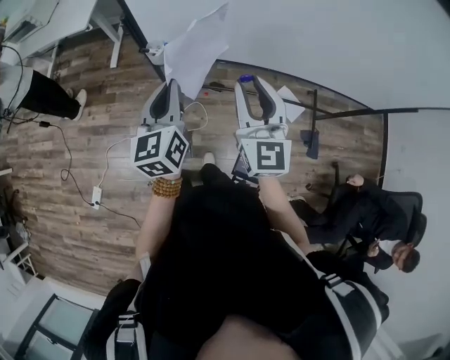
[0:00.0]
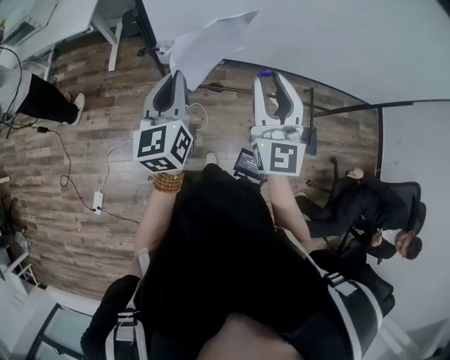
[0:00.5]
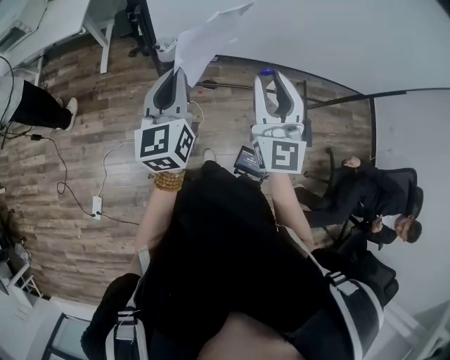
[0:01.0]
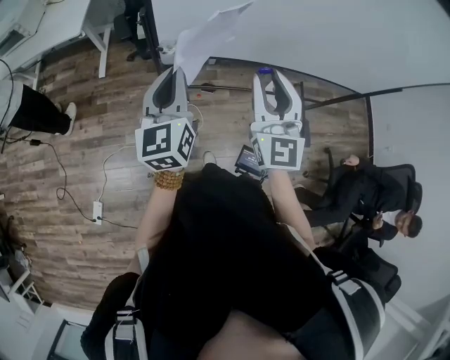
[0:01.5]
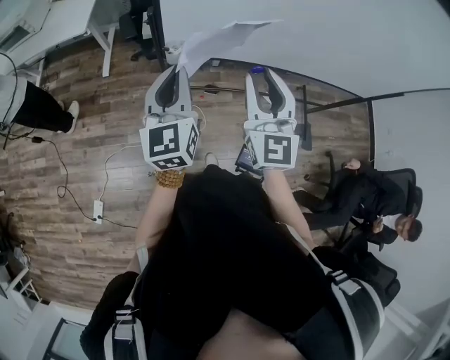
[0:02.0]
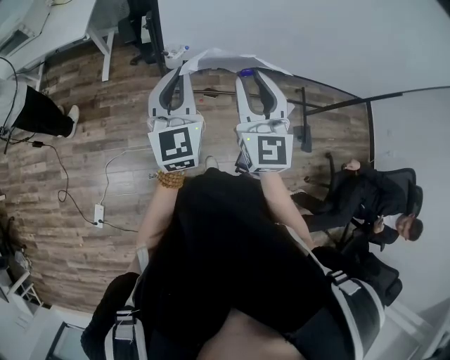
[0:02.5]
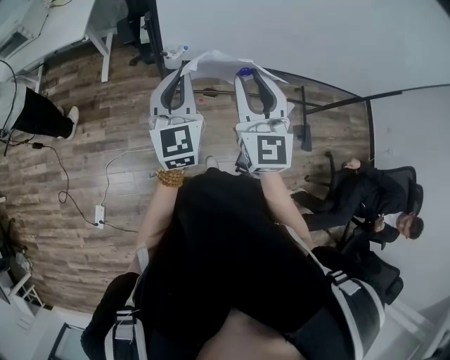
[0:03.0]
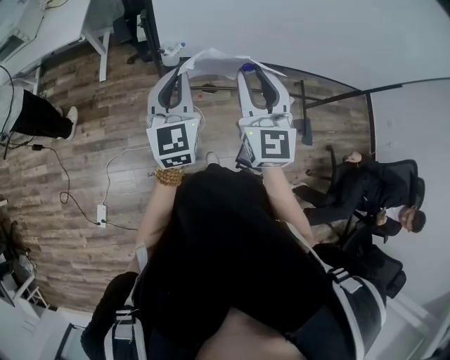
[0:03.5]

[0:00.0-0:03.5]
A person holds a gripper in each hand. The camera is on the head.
0:00.0 to 0:02.0: The left gripper is displaced to the left and upward by roughly 10 cm, while the right gripper shifts roughly 10 cm to the left.
0:02.0 to 0:03.5: There are only small adjustments of the grippers.

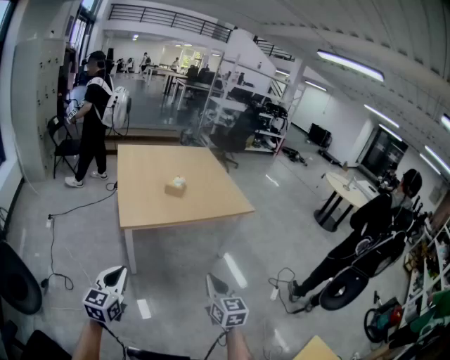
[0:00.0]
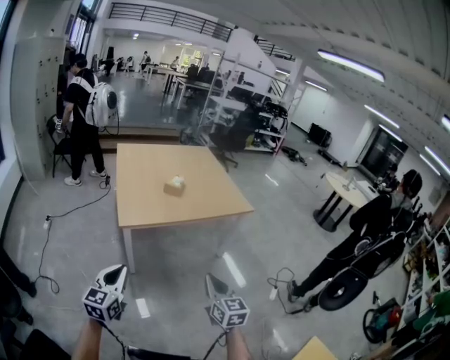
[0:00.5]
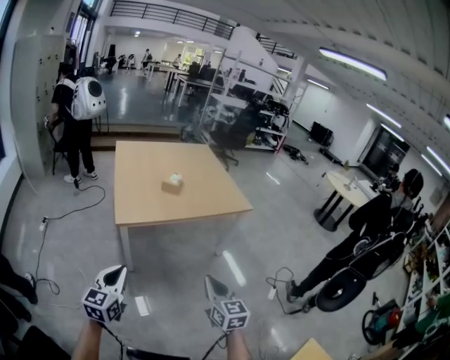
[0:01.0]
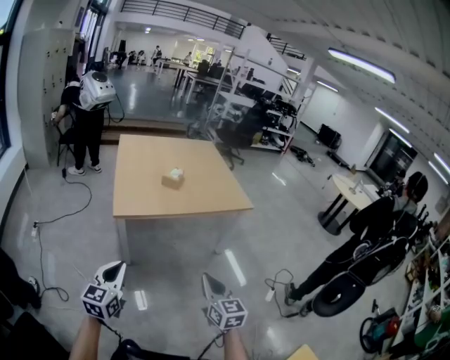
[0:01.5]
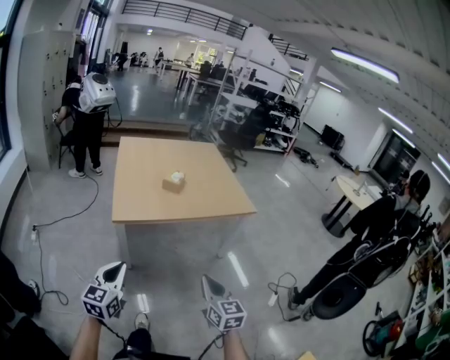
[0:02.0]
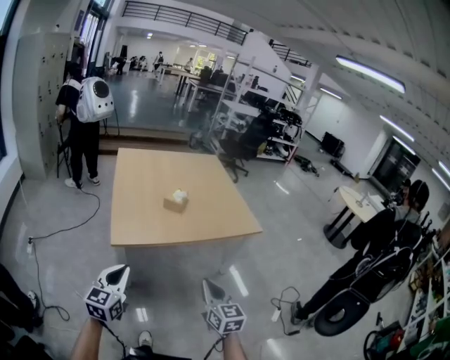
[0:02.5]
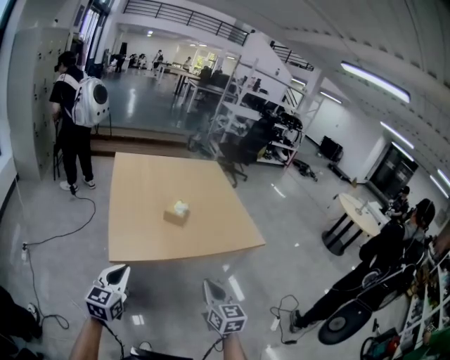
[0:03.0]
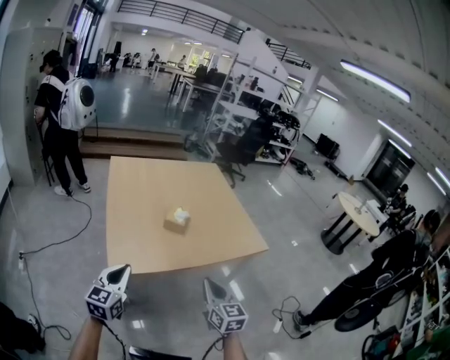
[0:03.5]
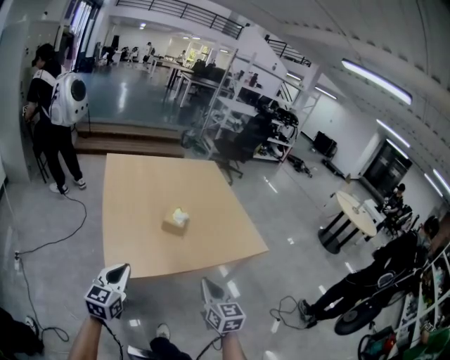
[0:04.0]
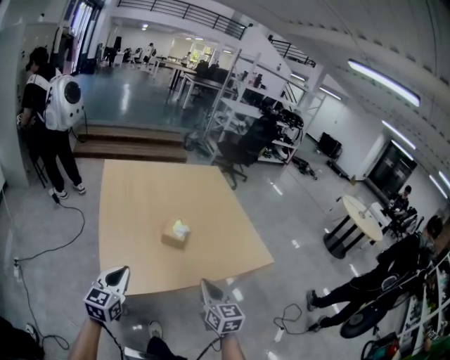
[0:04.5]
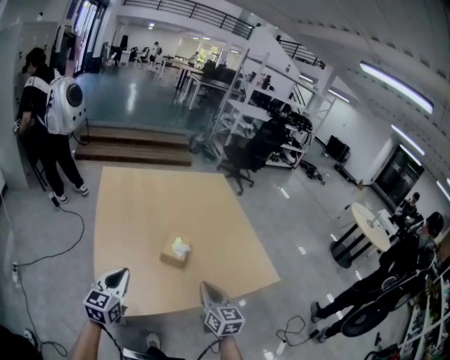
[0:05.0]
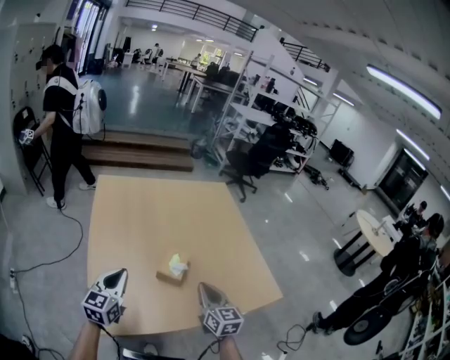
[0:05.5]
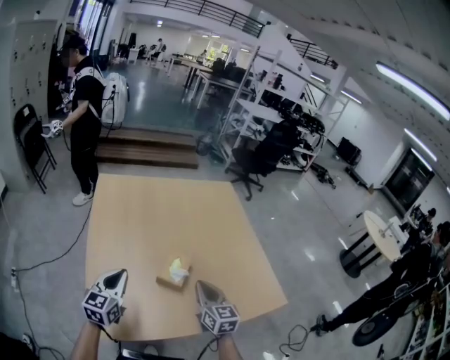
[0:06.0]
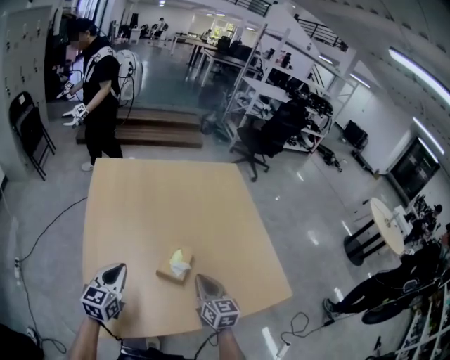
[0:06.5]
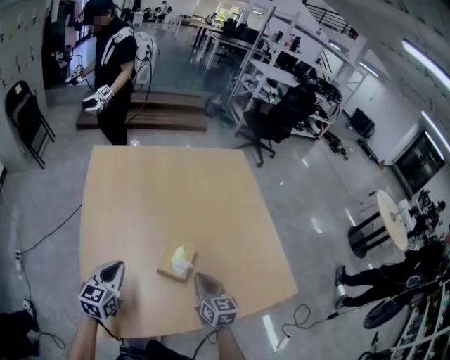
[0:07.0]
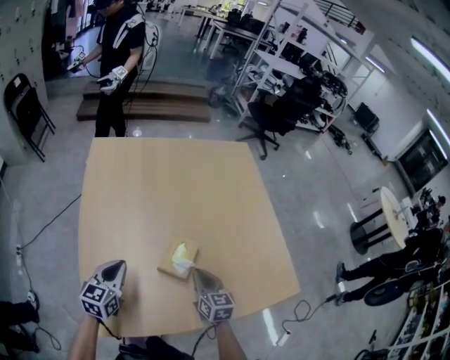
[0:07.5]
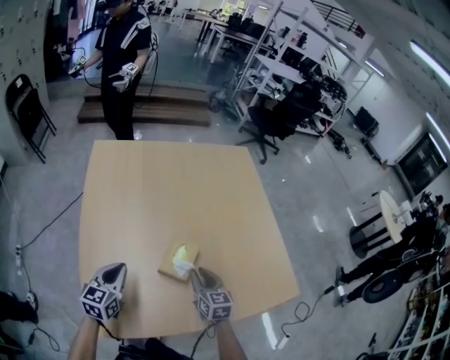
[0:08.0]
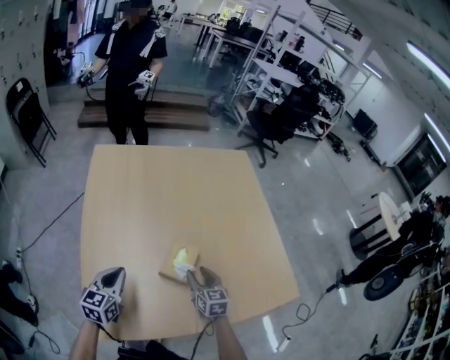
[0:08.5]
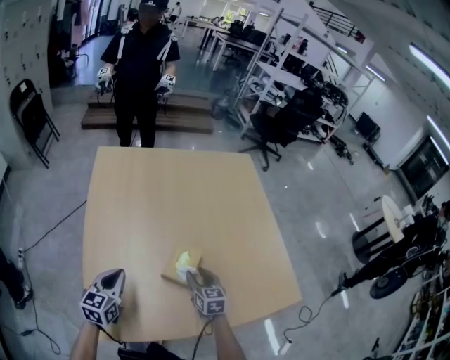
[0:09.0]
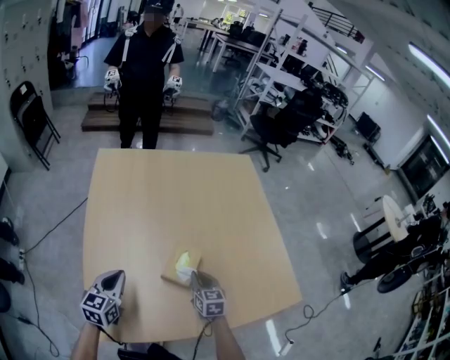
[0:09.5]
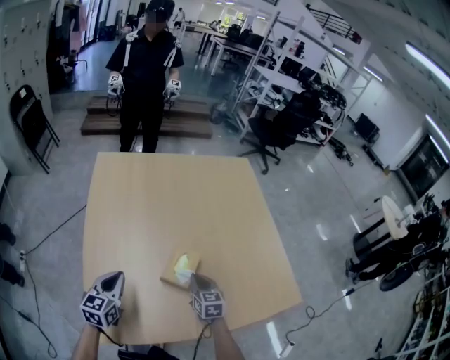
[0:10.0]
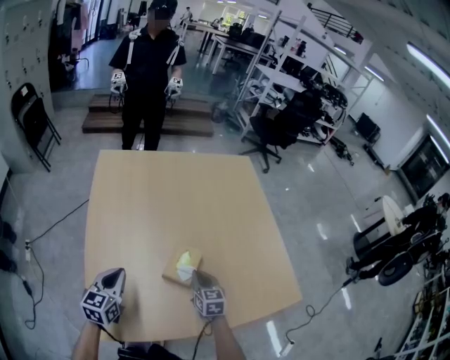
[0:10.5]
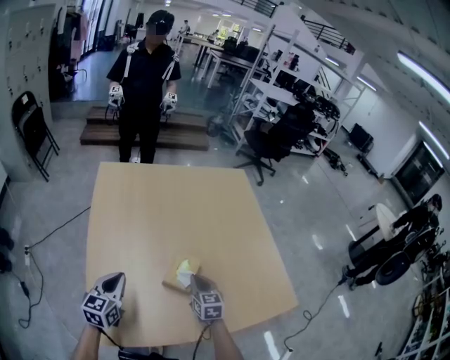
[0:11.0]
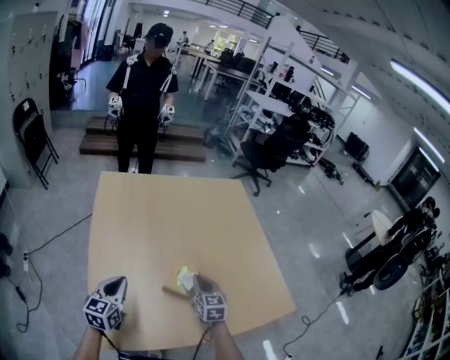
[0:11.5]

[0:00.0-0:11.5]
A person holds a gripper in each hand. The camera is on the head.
0:00.0 to 0:02.0: The left gripper moves to the right, roughly 5 cm, while the right gripper ends up some 5 cm from where it was.
0:02.0 to 0:04.0: Both grippers move forward, approximately 30 cm.
0:04.0 to 0:06.0: The grippers both shift forward by roughly 30 cm.
0:06.0 to 0:07.5: The two grippers go approximately 10 cm downward and forward.
0:07.5 to 0:09.5: The right gripper moves downward, approximately 5 cm, and opens, then closes again.
0:09.5 to 0:11.5: The right gripper shifts approximately 10 cm upward.

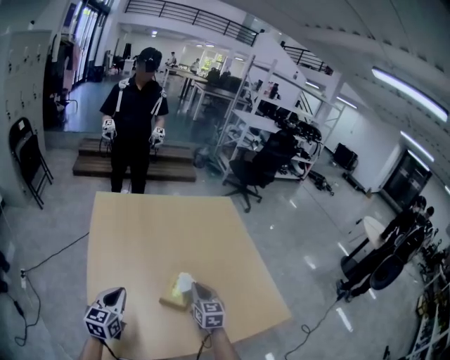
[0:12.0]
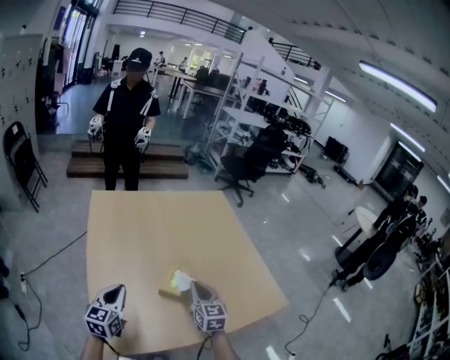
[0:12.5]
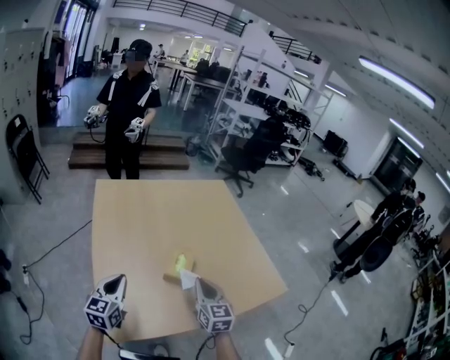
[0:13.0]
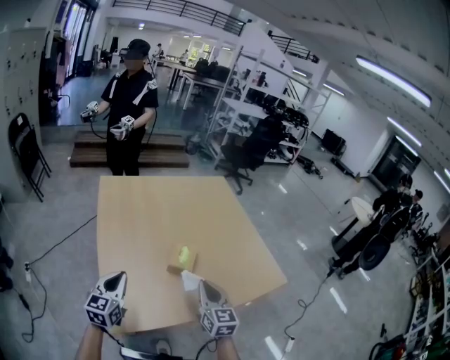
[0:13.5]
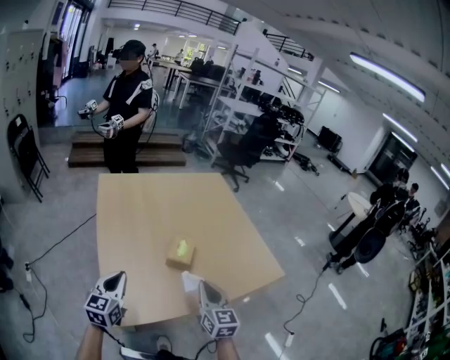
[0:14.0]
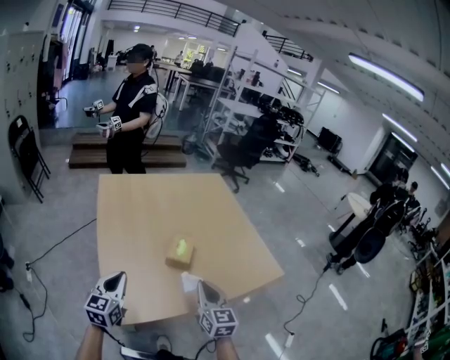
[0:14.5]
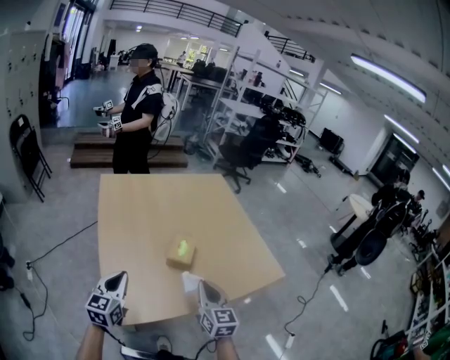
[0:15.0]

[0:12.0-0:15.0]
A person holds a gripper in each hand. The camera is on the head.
0:12.0 to 0:13.5: The left gripper goes roughly 10 cm backward. Meanwhile the right gripper heads backward and upward, covering about 20 cm.
0:13.5 to 0:15.0: The grippers move only a little.

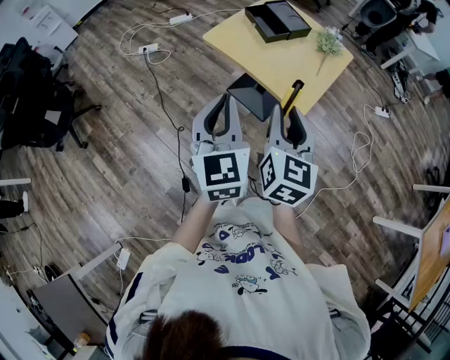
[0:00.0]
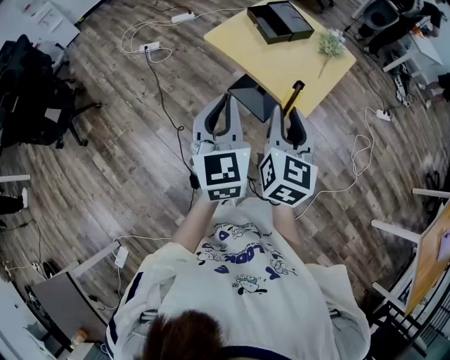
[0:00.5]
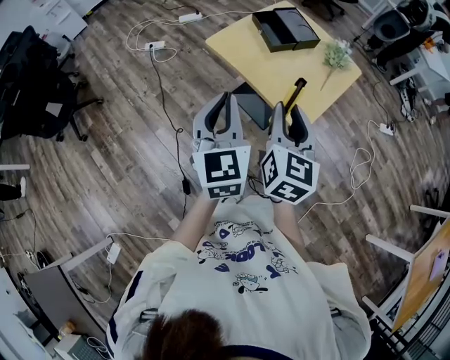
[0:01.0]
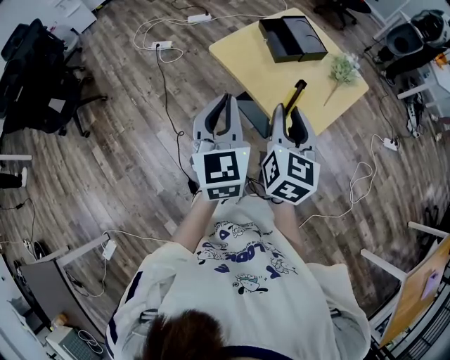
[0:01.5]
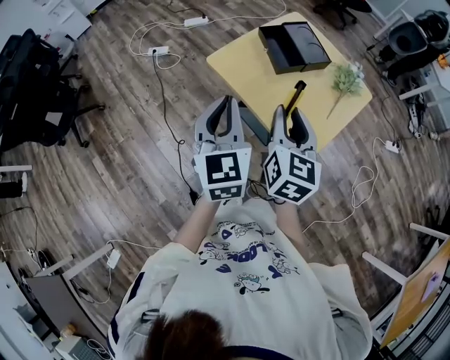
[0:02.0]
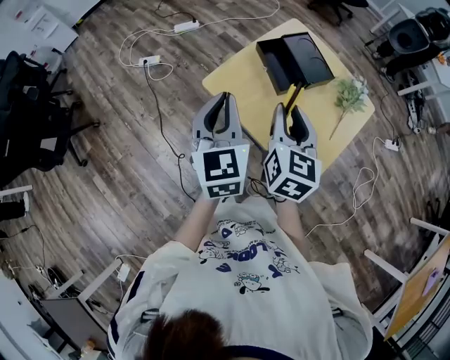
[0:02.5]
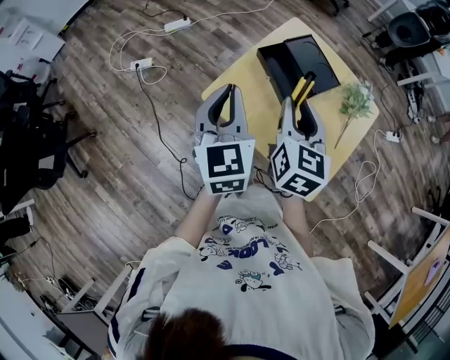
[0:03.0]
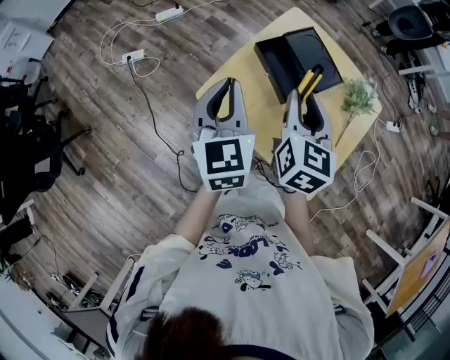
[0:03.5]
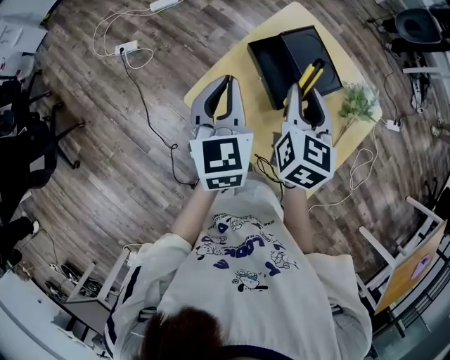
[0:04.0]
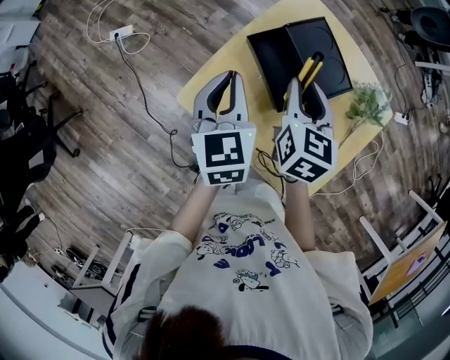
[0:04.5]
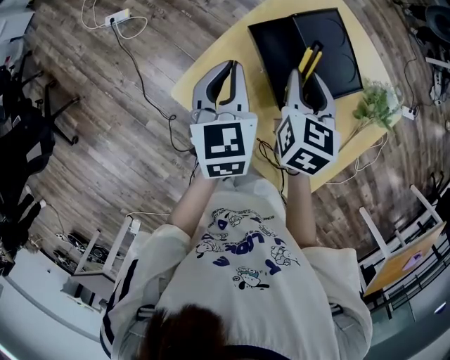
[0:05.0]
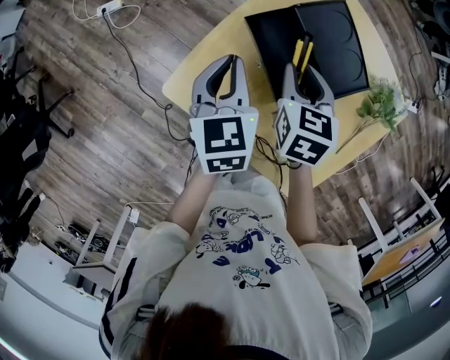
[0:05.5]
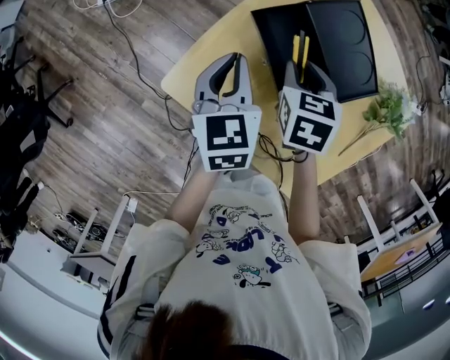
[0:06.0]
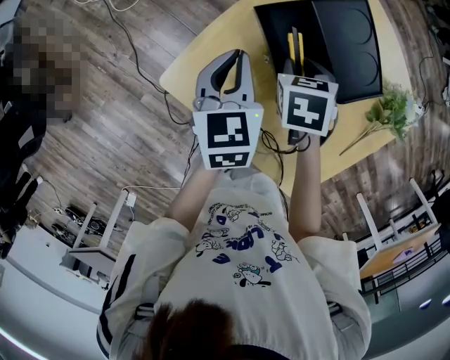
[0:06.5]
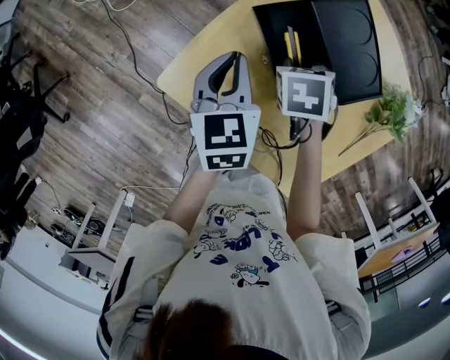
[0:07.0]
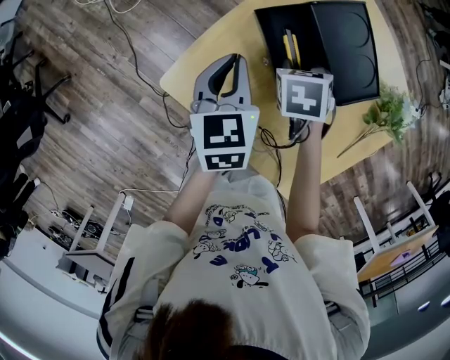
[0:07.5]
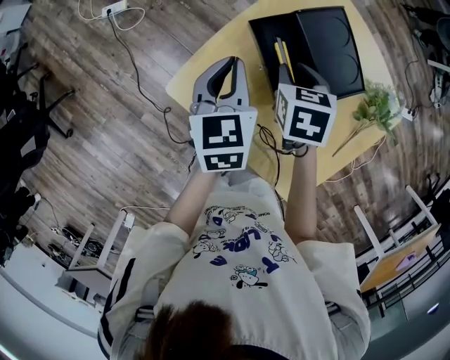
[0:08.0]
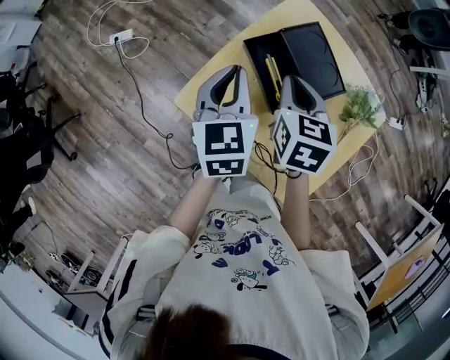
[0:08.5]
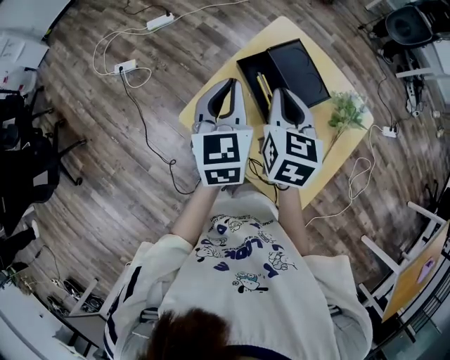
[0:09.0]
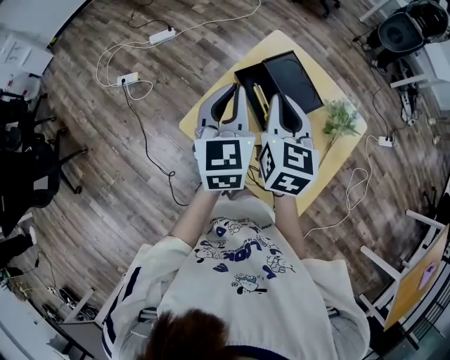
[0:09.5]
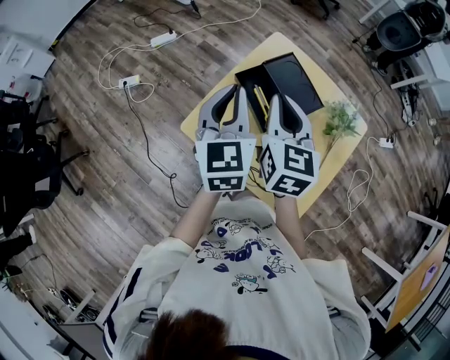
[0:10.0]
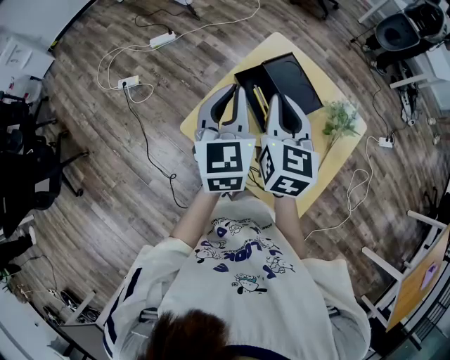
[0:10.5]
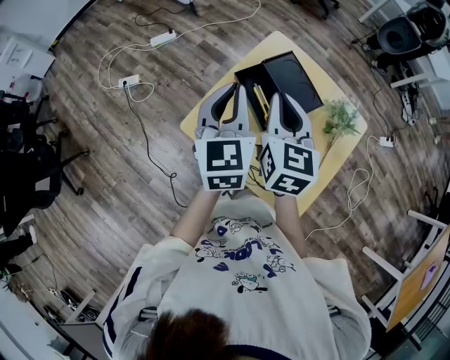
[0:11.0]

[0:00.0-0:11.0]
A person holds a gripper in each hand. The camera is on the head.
0:00.0 to 0:02.0: The grippers both shift forward by approximately 20 cm.
0:02.0 to 0:03.5: The grippers both shift forward by some 25 cm.
0:03.5 to 0:05.5: The grippers both shift downward and forward by some 20 cm. The left gripper swivels about 20 degrees; the right gripper turns by some 30 degrees.
0:05.5 to 0:07.5: The right gripper travels downward by about 10 cm, and turns by approximately 30 degrees.
0:07.5 to 0:09.0: The grippers both shift upward by roughly 20 cm. The left gripper swivels approximately 20 degrees; the right gripper tips its fingers upward by about 40 degrees, and closes up.
0:09.0 to 0:11.0: The right gripper heads upward, covering about 5 cm. The left gripper shifts by roughly 5 cm.
